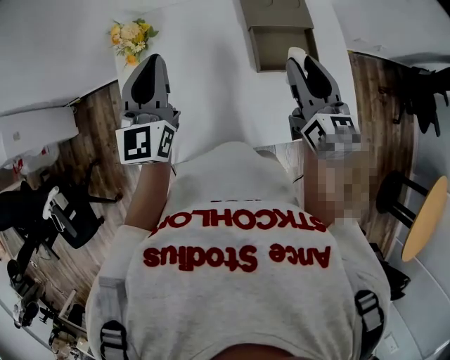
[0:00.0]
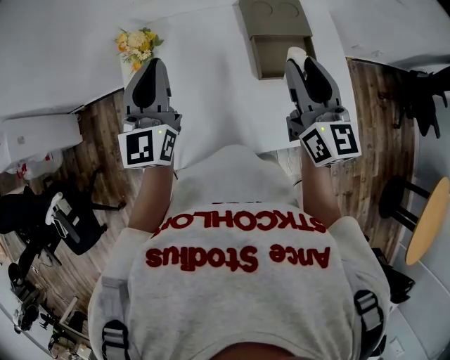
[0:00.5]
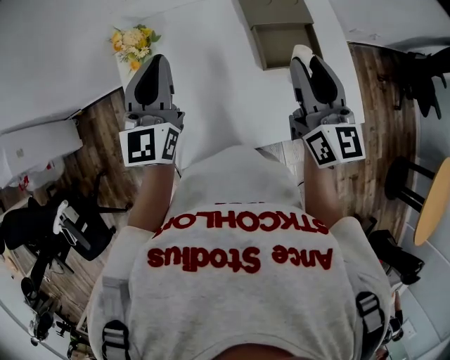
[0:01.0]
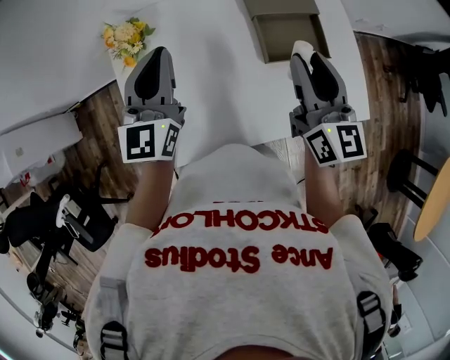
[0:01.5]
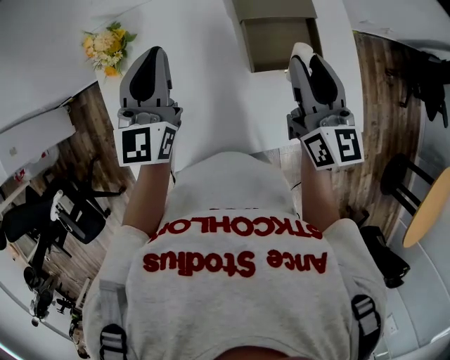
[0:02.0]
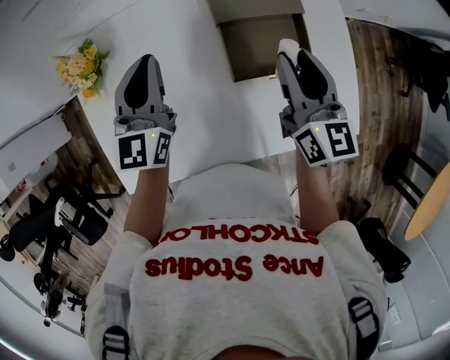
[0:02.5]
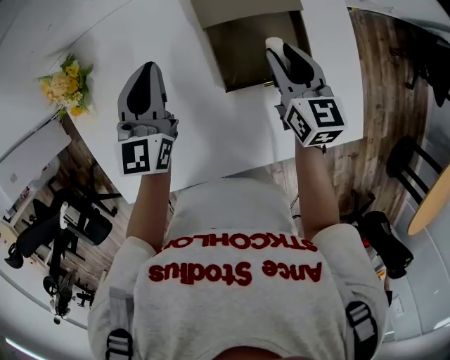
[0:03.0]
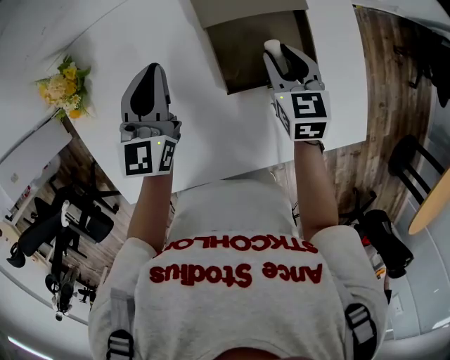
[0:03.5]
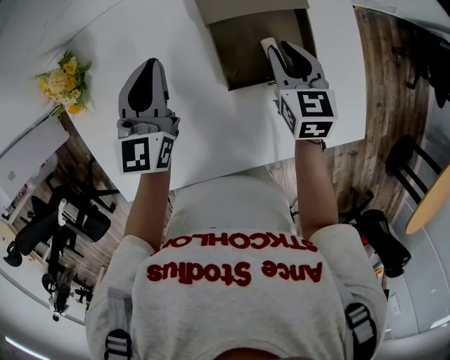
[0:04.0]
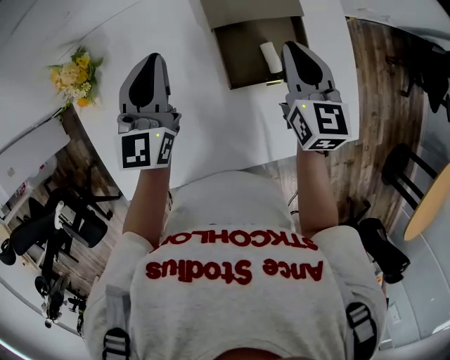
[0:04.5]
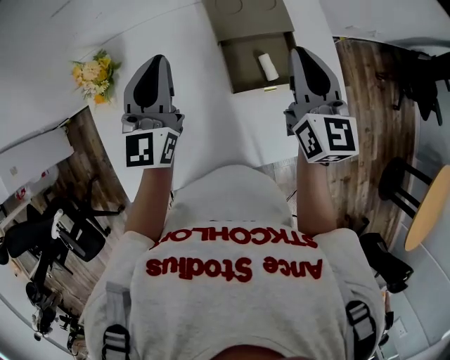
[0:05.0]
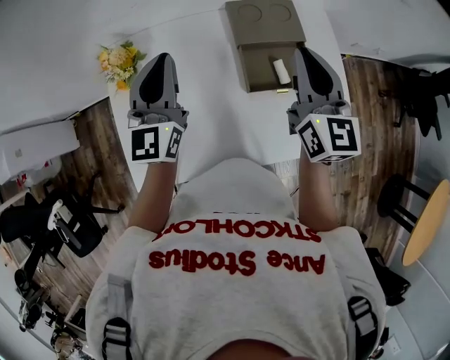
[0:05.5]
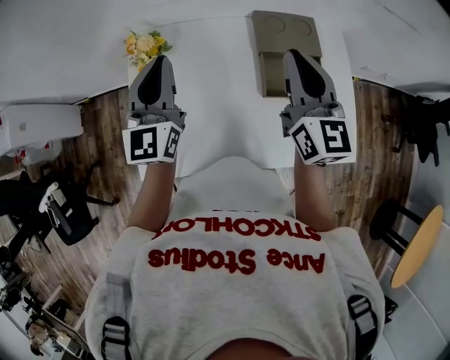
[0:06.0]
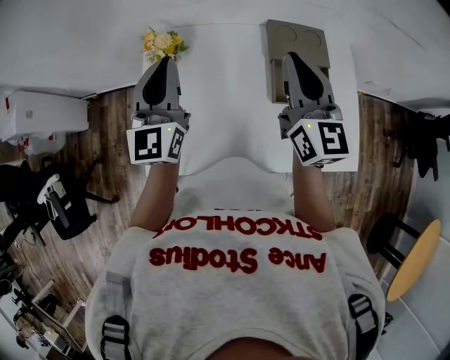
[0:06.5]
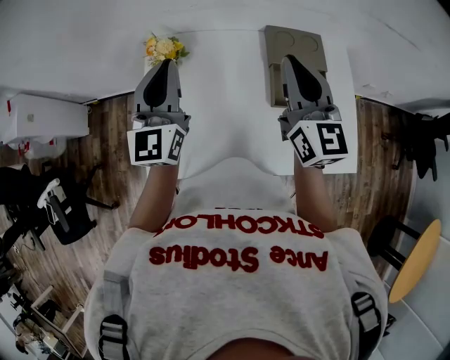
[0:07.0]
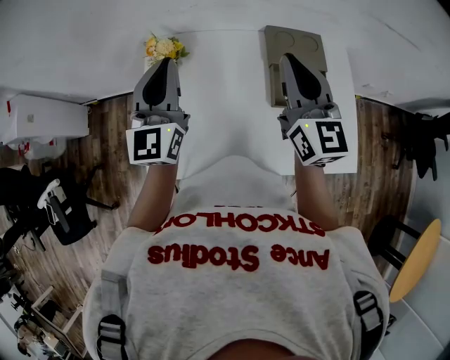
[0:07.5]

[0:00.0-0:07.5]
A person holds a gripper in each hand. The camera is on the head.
0:00.0 to 0:02.0: The left gripper travels forward and to the right by some 10 cm.
0:02.0 to 0:04.0: The right gripper shifts some 15 cm downward, and tilts its fingers roughly 30 degrees downward. Meanwhile the left gripper goes some 10 cm downward and to the right.
0:04.0 to 0:05.5: The left gripper travels upward by roughly 15 cm. The right gripper shifts about 20 cm upward, and points its fingers roughly 30 degrees further upward.
0:05.5 to 0:07.5: The two grippers go about 10 cm to the left.

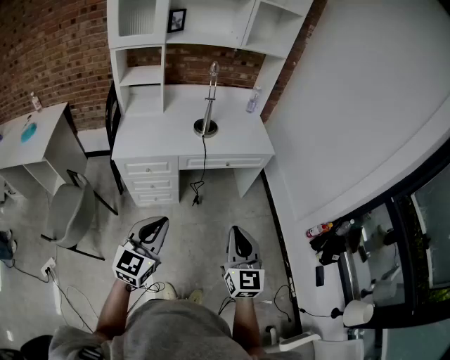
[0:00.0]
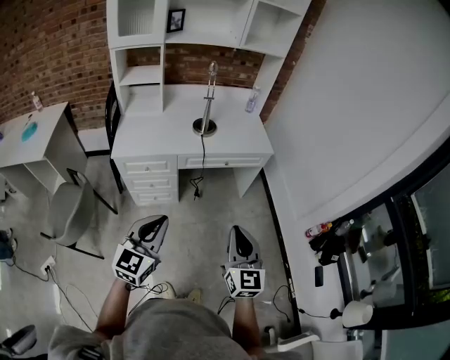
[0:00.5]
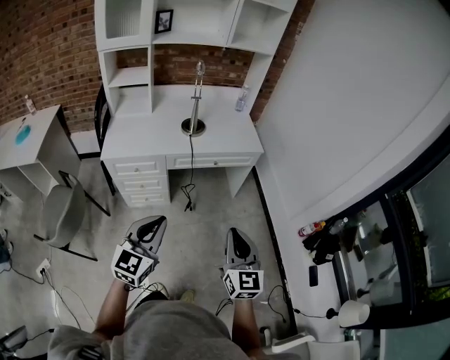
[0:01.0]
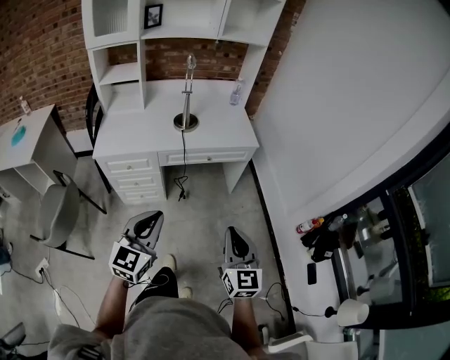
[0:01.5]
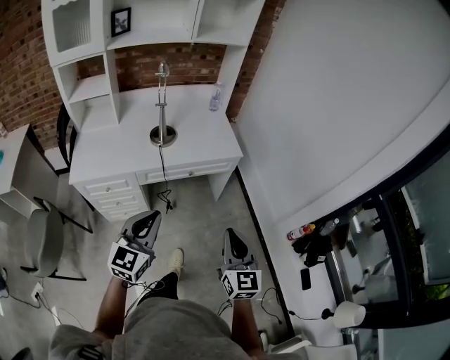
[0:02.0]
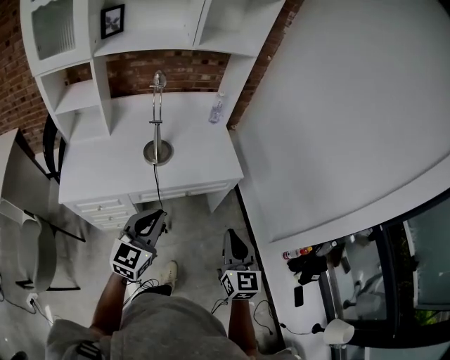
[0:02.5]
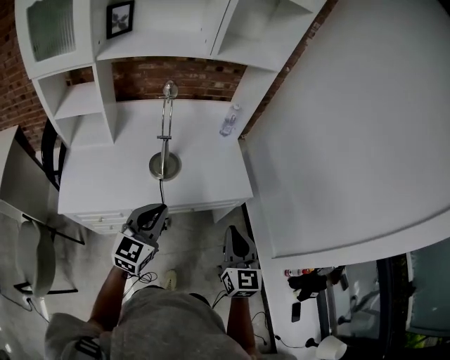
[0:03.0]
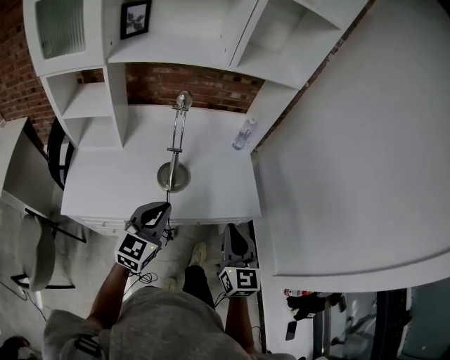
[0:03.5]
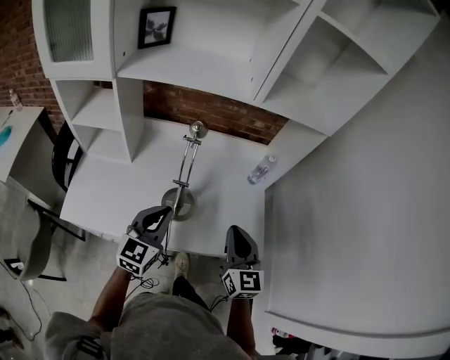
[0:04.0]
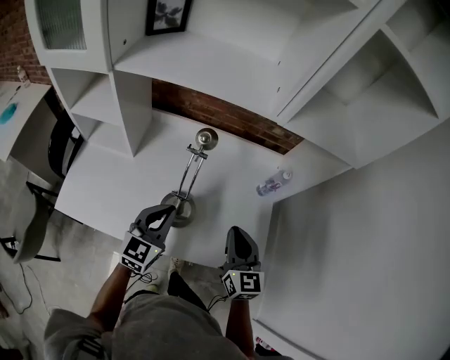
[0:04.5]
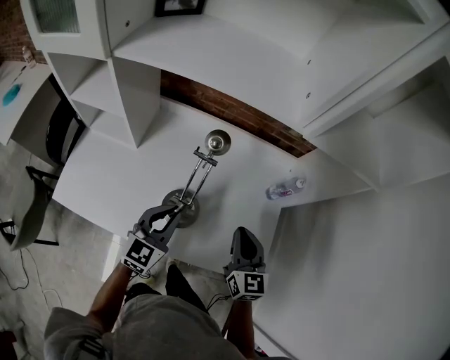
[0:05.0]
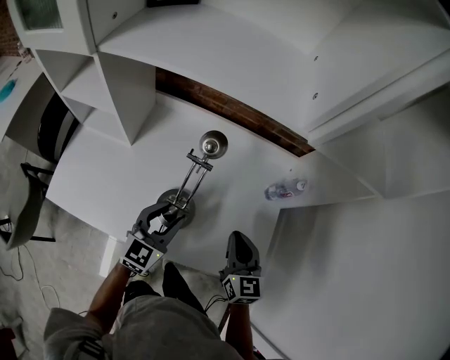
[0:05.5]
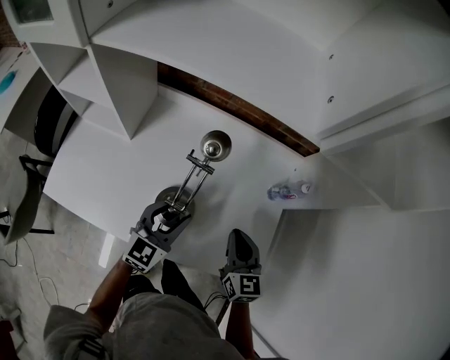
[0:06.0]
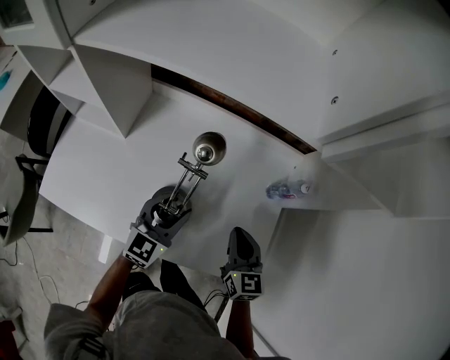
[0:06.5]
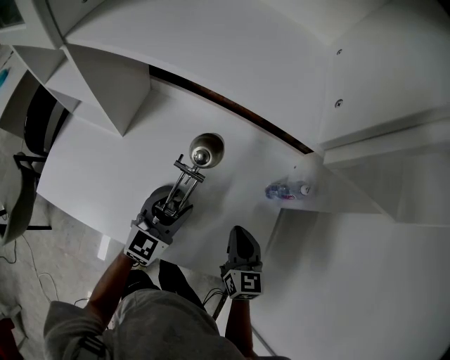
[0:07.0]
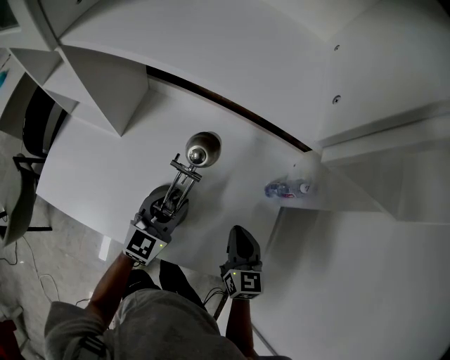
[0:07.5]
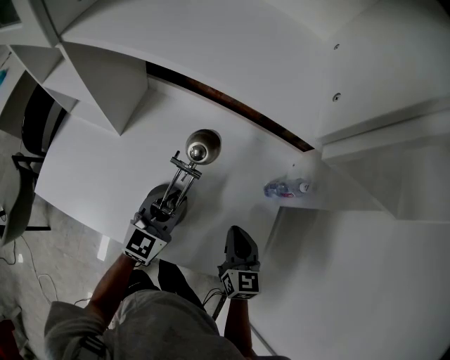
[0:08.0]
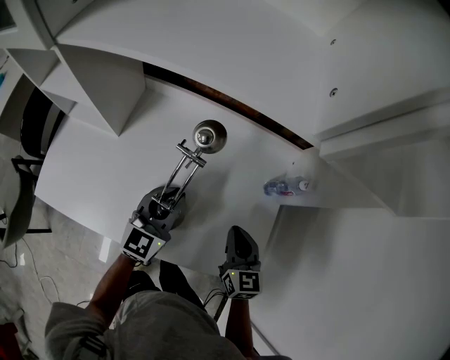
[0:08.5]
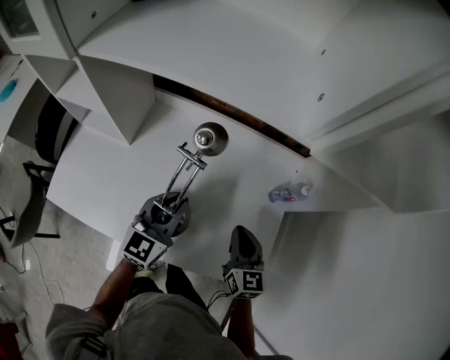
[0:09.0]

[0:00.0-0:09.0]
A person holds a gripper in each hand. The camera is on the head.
0:00.0 to 0:02.0: Both grippers move forward and to the right, some 20 cm.
0:02.0 to 0:04.5: The two grippers travel together, forward, roughly 50 cm. The left gripper swivels some 20 degrees. The right gripper swivels about 20 degrees.
0:04.5 to 0:07.0: The left gripper shifts approximately 10 cm forward and downward, and opens, while the right gripper travels downward and forward by some 15 cm.
0:07.0 to 0:09.0: The left gripper moves upward, approximately 5 cm, and closes.

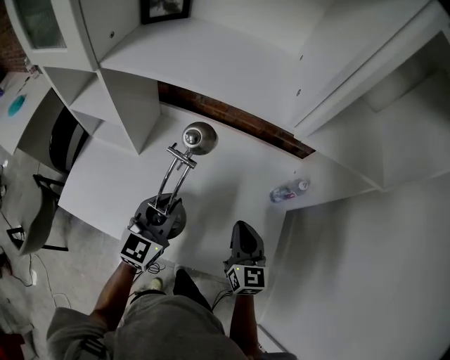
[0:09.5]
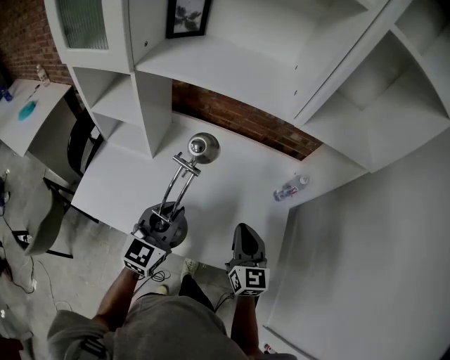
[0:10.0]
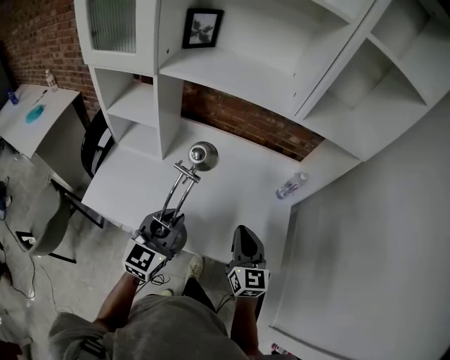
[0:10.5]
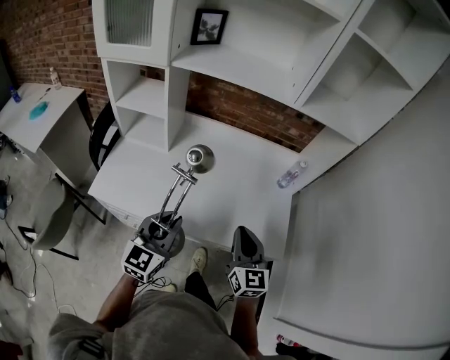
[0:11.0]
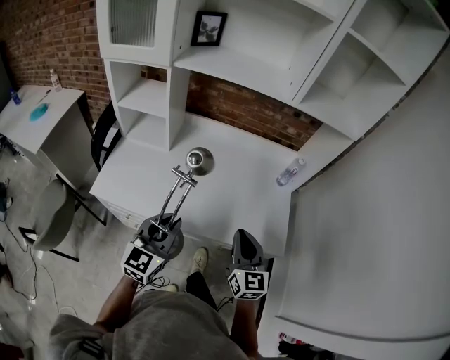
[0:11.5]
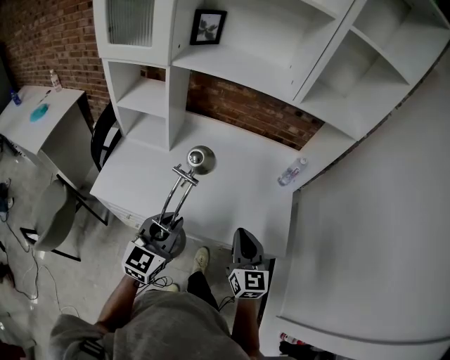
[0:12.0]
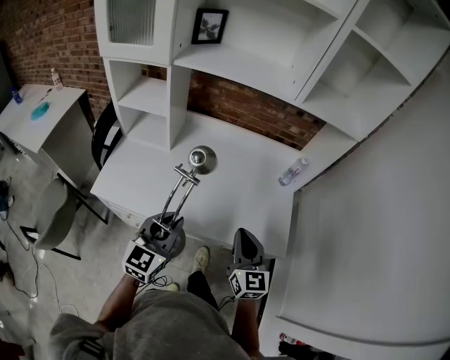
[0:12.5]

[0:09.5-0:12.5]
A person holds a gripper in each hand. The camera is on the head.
0:09.5 to 0:11.0: The two grippers go some 20 cm backward.
0:11.0 to 0:12.5: The grippers make only small movements.

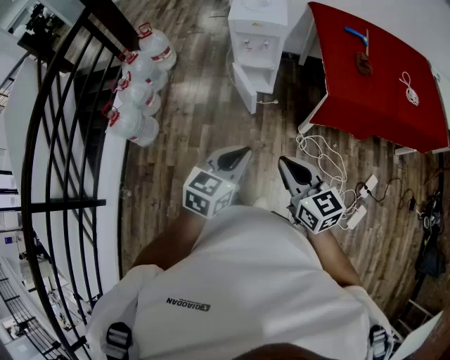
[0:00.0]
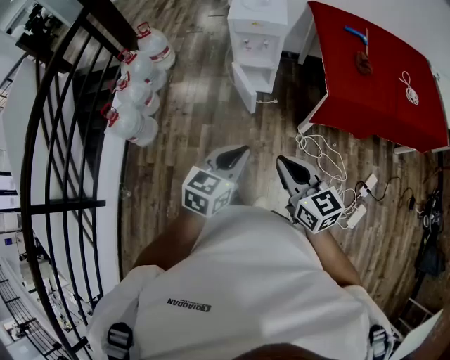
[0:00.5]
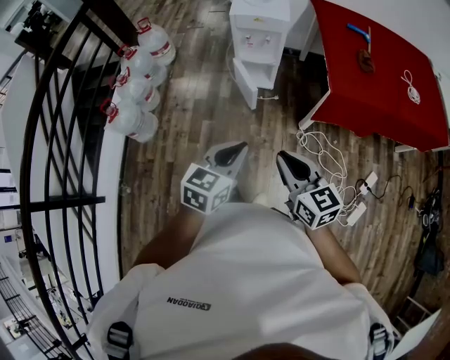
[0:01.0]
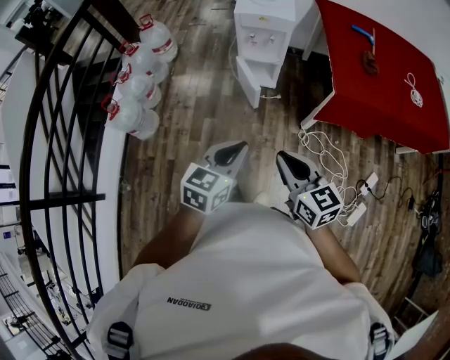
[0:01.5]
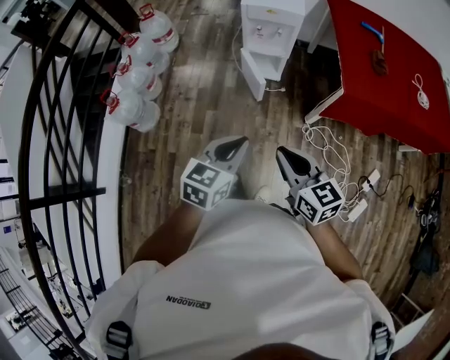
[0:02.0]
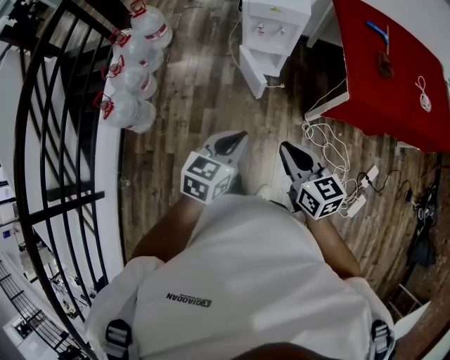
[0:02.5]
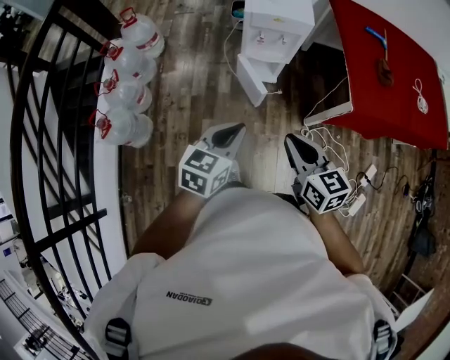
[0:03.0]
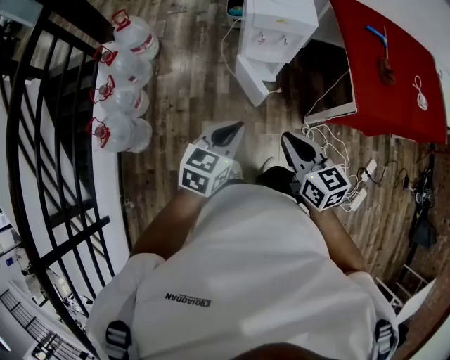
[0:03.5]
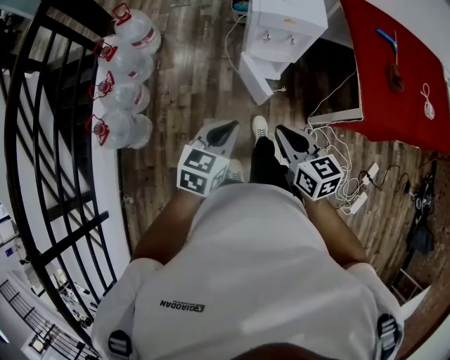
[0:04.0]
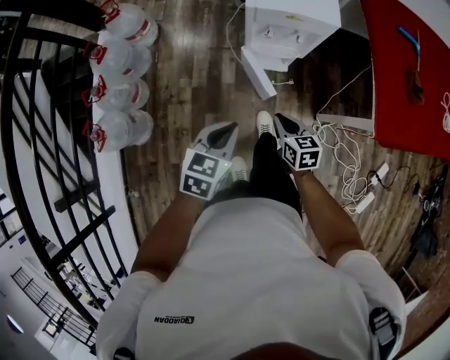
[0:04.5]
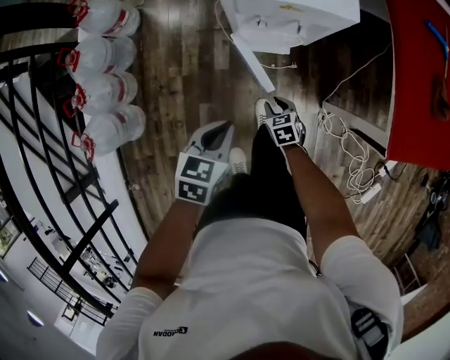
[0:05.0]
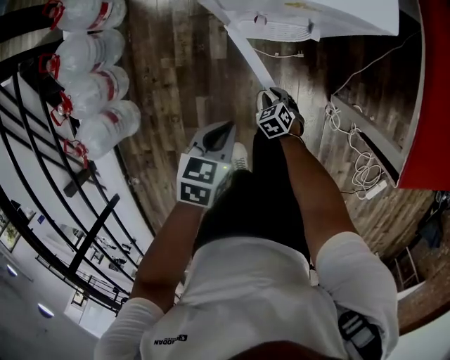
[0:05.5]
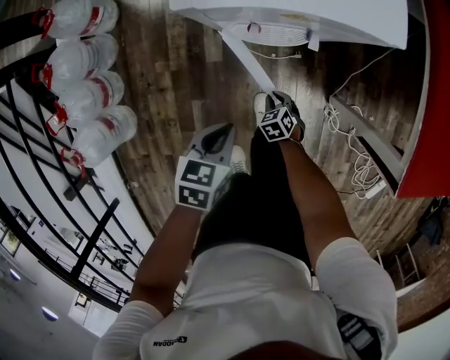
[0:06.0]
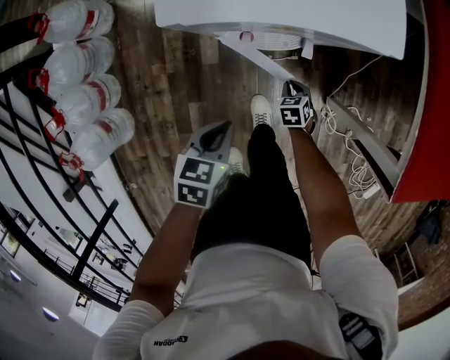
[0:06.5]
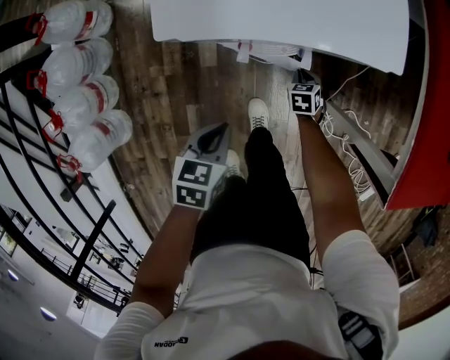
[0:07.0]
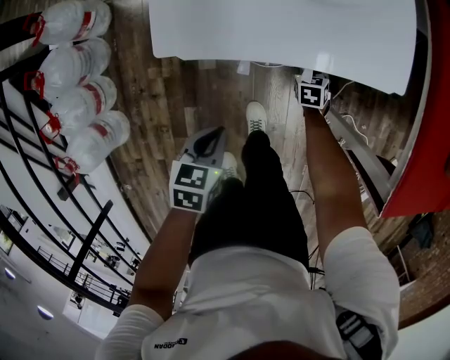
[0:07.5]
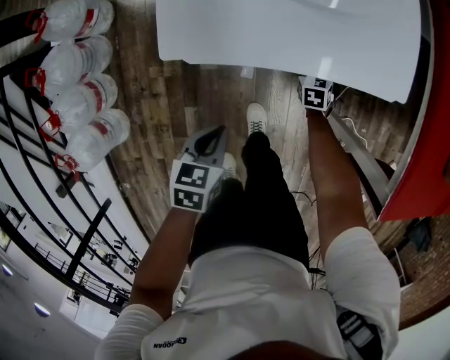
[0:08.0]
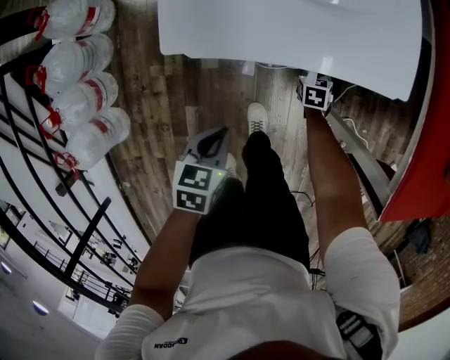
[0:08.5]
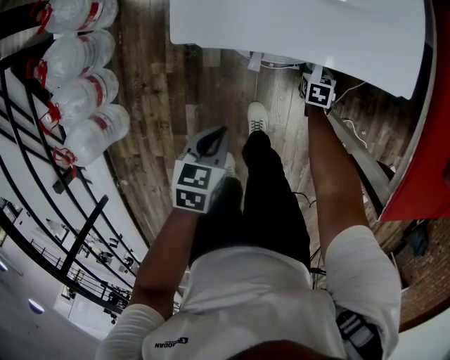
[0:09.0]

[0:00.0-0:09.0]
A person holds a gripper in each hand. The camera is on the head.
0:00.0 to 0:02.0: The grippers both shift to the left by some 5 cm.
0:02.0 to 0:04.5: Both grippers travel together forward and downward, approximately 40 cm. The right gripper changes its angle by approximately 20 degrees.
0:04.5 to 0:07.0: The left gripper shifts approximately 30 cm downward and forward, and rotates about 20 degrees. Meanwhile the right gripper shifts roughly 40 cm downward and forward, and rotates approximately 30 degrees.
0:07.0 to 0:09.0: The right gripper travels forward by roughly 5 cm.
